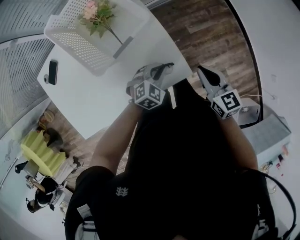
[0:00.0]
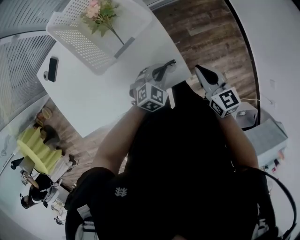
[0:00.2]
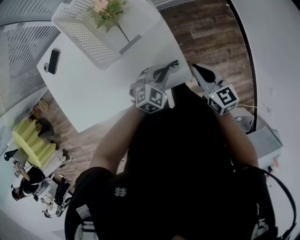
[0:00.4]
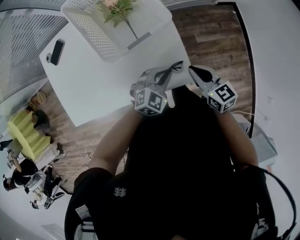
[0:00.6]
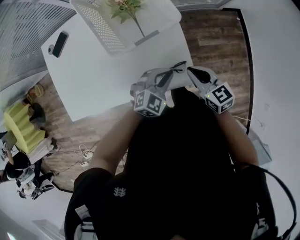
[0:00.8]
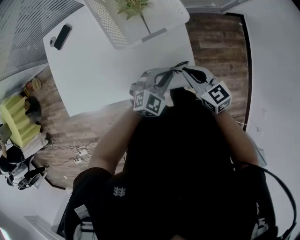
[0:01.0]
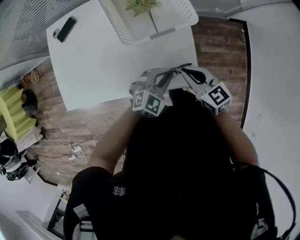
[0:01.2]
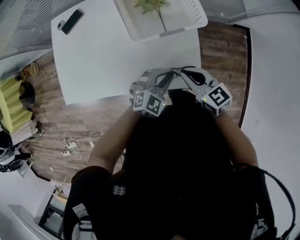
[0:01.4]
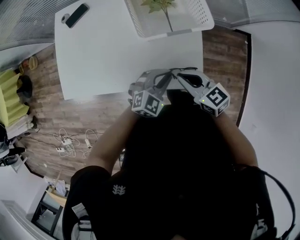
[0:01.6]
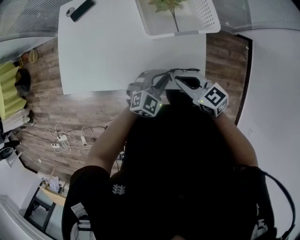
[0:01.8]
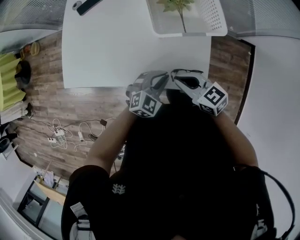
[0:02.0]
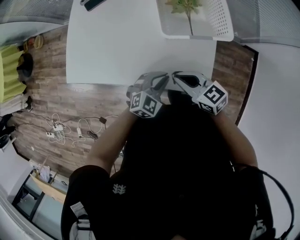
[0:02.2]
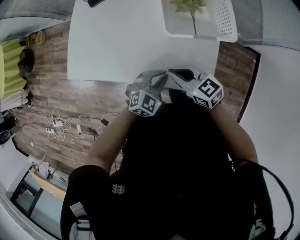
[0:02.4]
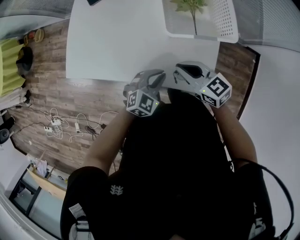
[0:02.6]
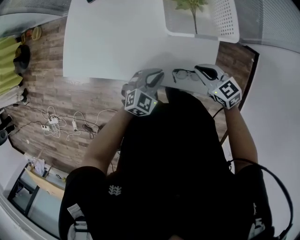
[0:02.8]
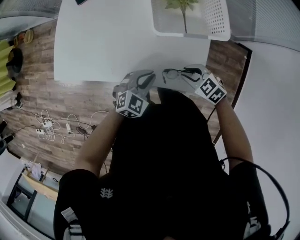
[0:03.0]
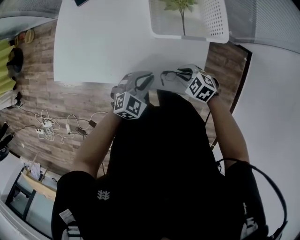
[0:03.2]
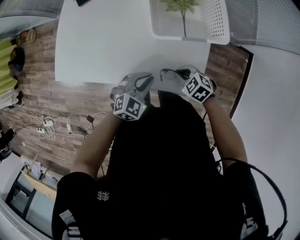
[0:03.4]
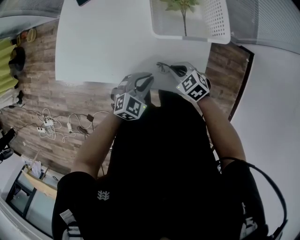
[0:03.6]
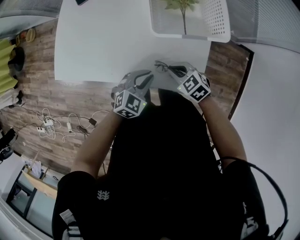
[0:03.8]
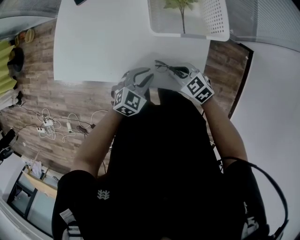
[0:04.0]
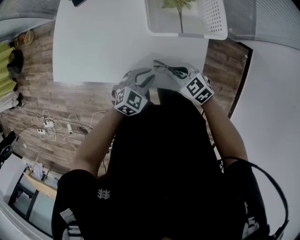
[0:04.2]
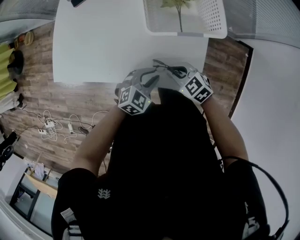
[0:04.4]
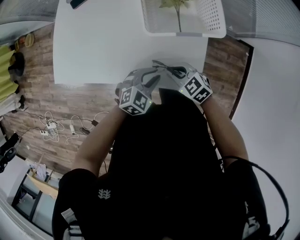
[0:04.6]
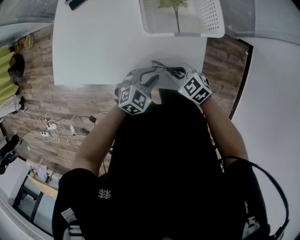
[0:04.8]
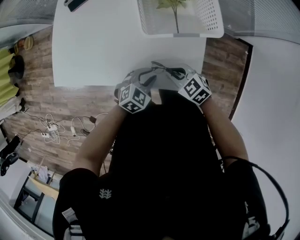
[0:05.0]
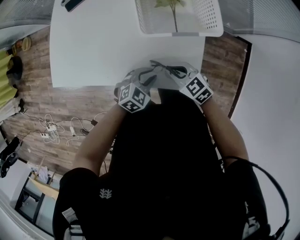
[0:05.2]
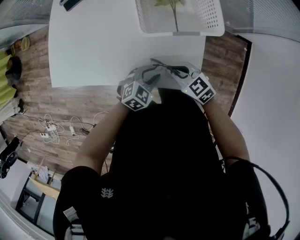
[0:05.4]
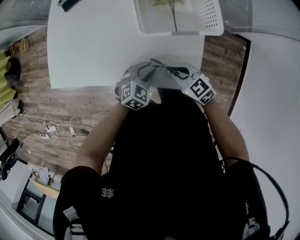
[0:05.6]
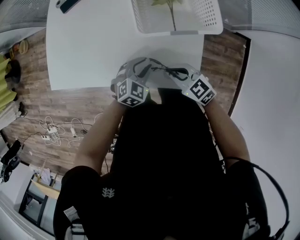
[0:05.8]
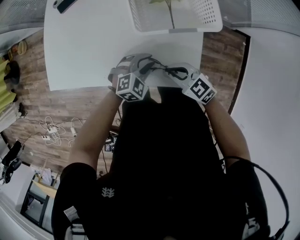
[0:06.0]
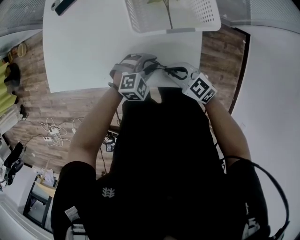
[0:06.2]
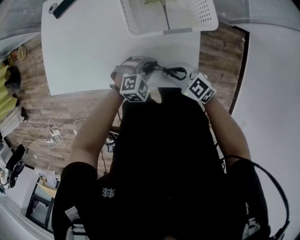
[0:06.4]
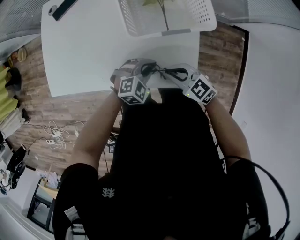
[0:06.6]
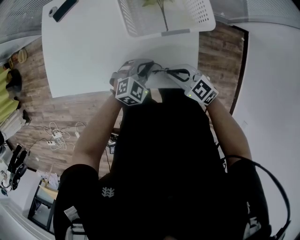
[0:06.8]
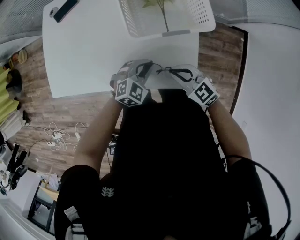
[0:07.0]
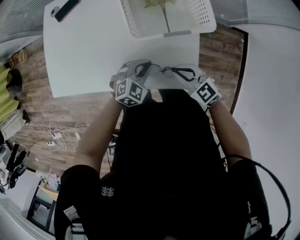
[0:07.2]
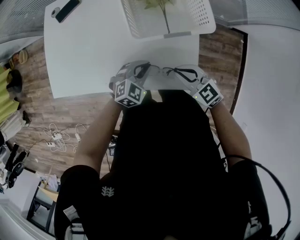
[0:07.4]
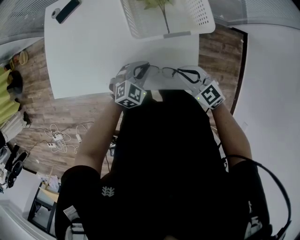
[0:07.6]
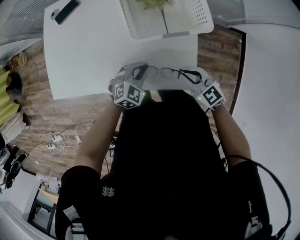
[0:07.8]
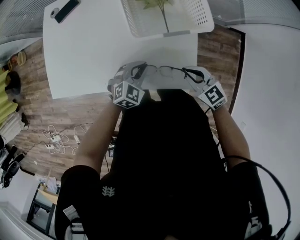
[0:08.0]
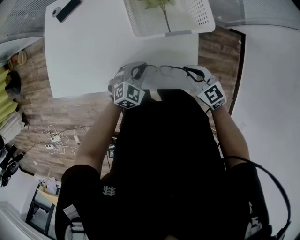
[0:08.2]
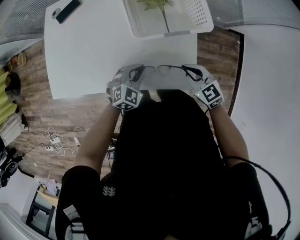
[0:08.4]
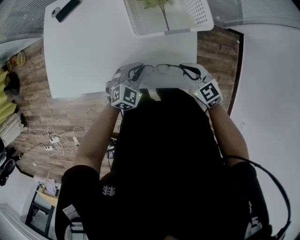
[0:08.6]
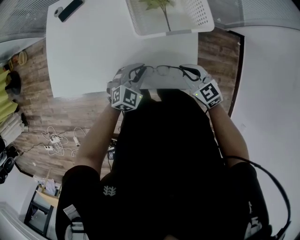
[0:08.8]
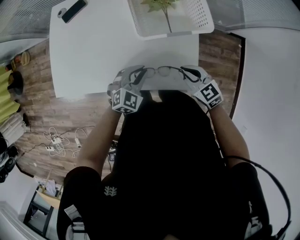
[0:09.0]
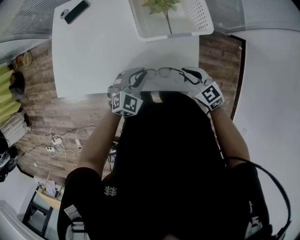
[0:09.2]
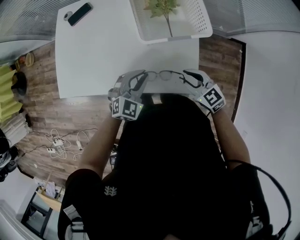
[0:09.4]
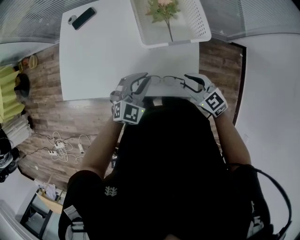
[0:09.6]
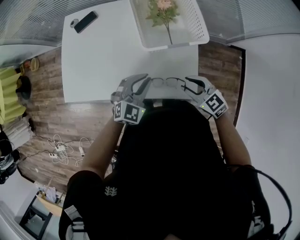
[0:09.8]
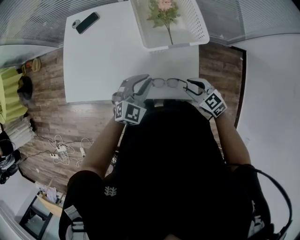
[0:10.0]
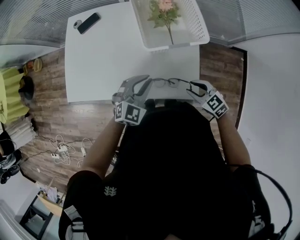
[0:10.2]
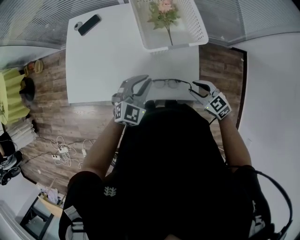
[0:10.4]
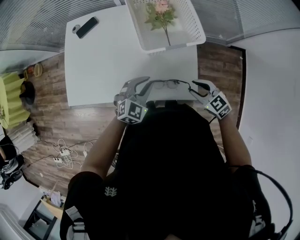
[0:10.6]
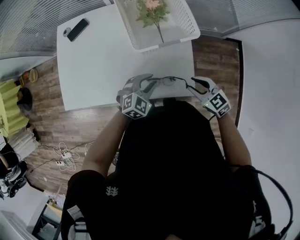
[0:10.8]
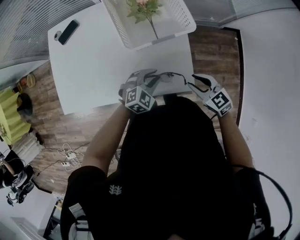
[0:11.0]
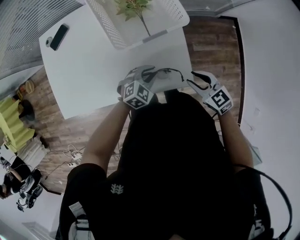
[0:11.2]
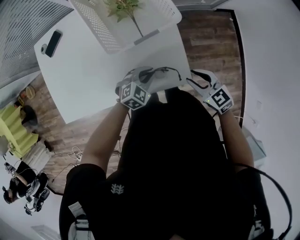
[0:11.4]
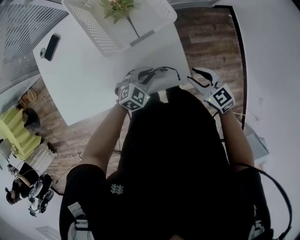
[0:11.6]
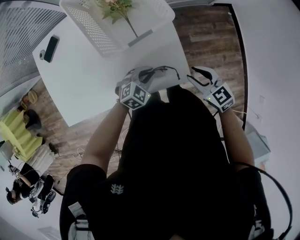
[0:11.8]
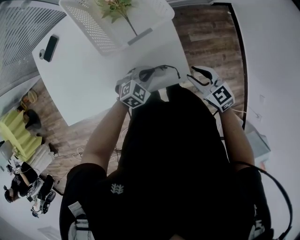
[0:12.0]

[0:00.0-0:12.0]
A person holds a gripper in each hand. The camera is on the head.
0:00.0 to 0:01.6: The right gripper moves some 20 cm, and swivels about 50 degrees. Meanwhile the left gripper shifts by approximately 10 cm, and rotates roughly 30 degrees.
0:01.6 to 0:03.0: The left gripper goes some 10 cm to the left. Meanwhile the right gripper heads downward, covering some 10 cm, goes to the left and returns, roughly 10 cm each way, changes its angle by roughly 40 degrees, and opens up.
0:03.0 to 0:04.4: The grippers move only a little.
0:04.4 to 0:06.0: The left gripper changes place by some 5 cm.
0:06.0 to 0:07.6: The right gripper ends up about 5 cm from where it was. The left gripper closes.
0:07.6 to 0:09.0: There are only small adjustments of the grippers.
0:09.0 to 0:10.4: The left gripper is displaced upward by roughly 10 cm, while the right gripper changes place by some 5 cm, and opens up.
0:10.4 to 0:12.0: The right gripper shifts by roughly 5 cm, and turns by approximately 20 degrees. The left gripper travels downward by approximately 15 cm, and rotates some 40 degrees.

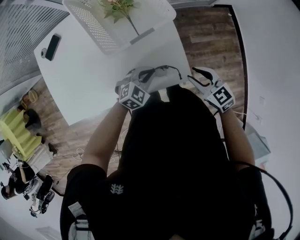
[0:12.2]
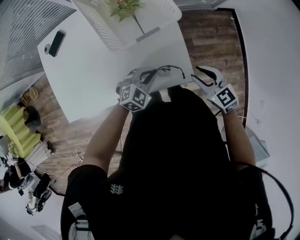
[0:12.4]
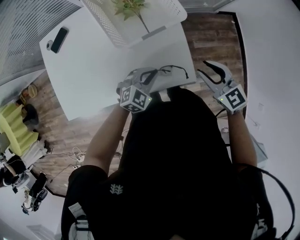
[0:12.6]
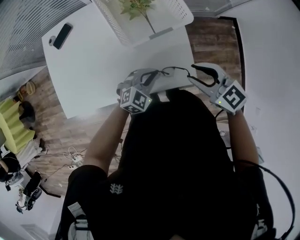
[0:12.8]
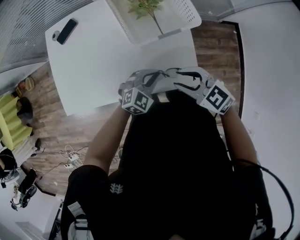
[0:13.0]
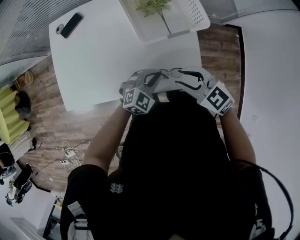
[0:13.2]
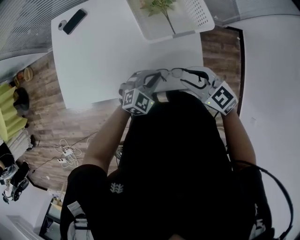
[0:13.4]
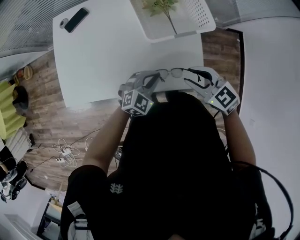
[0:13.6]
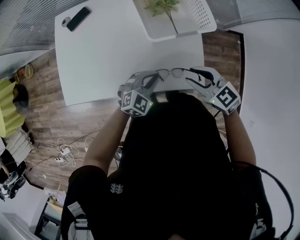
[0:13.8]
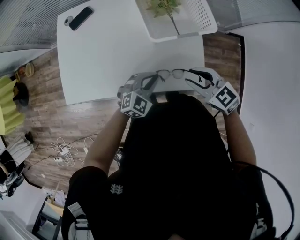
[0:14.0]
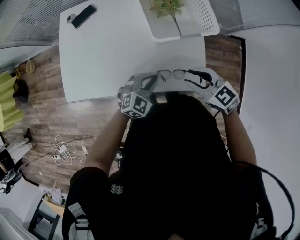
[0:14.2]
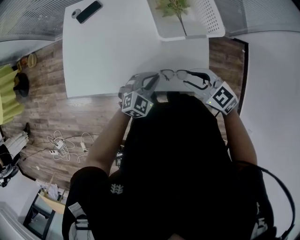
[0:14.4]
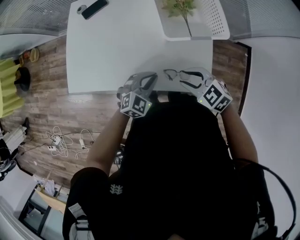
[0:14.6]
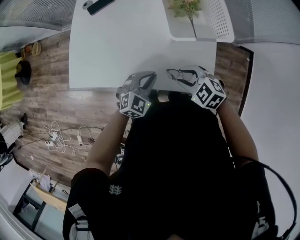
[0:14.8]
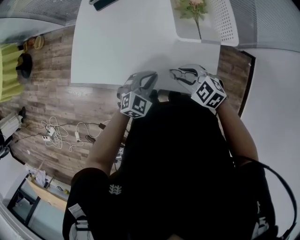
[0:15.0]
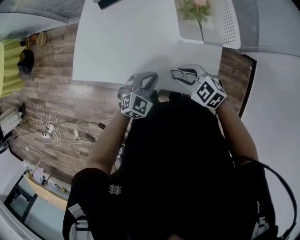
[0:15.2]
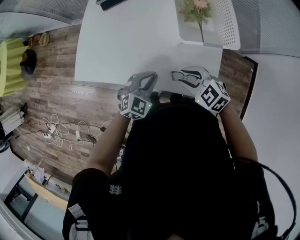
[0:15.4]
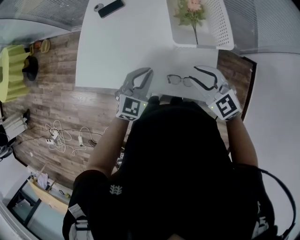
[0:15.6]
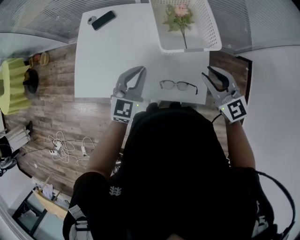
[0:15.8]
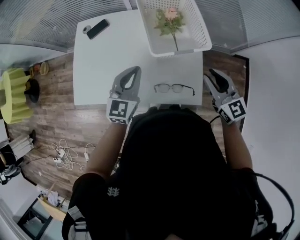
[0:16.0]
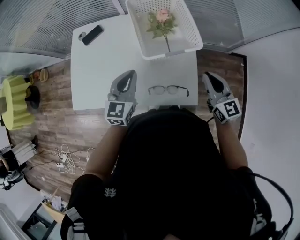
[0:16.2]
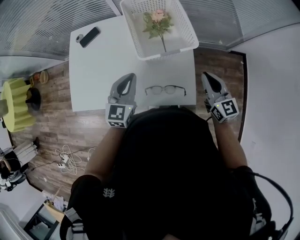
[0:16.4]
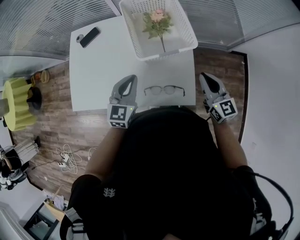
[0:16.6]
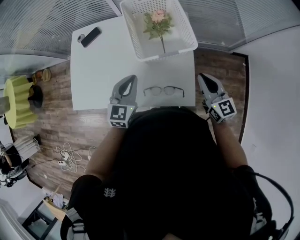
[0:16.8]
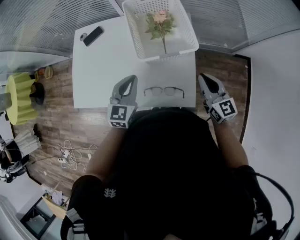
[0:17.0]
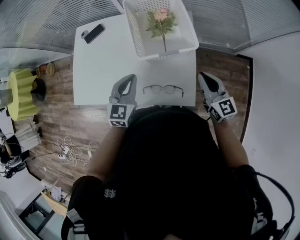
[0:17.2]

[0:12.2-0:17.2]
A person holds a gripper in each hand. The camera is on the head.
0:12.2 to 0:13.8: The grippers both shift to the left and upward by approximately 15 cm.
0:13.8 to 0:15.6: The right gripper heads upward, covering some 5 cm, and swivels roughly 20 degrees; the left gripper is displaced upward and to the left by some 15 cm, and changes its angle by roughly 30 degrees.
0:15.6 to 0:17.2: The right gripper goes about 20 cm to the right, swivels approximately 50 degrees, and closes. The left gripper is displaced to the right by roughly 5 cm.

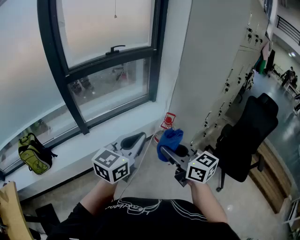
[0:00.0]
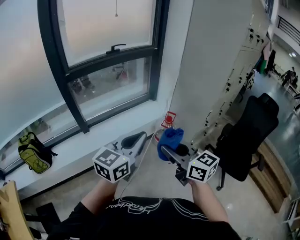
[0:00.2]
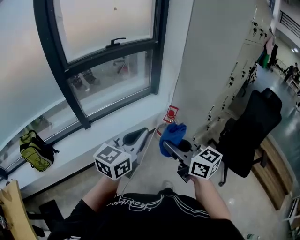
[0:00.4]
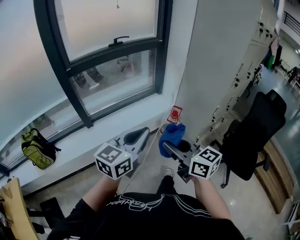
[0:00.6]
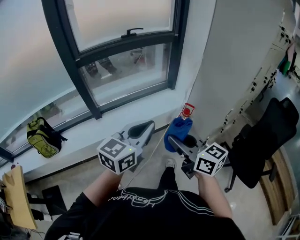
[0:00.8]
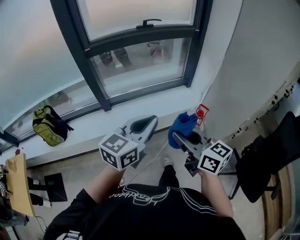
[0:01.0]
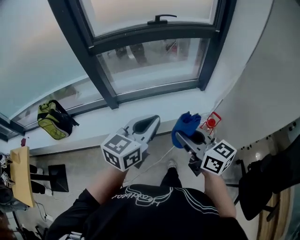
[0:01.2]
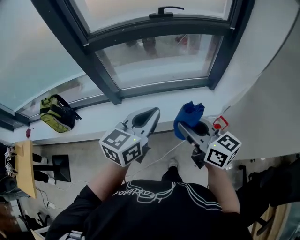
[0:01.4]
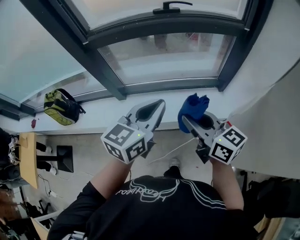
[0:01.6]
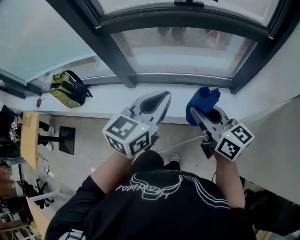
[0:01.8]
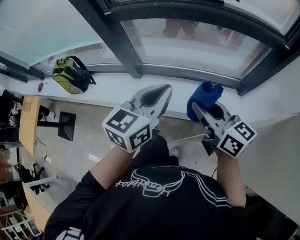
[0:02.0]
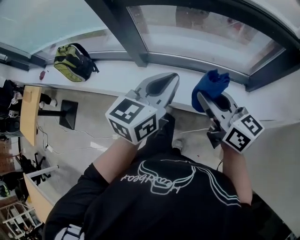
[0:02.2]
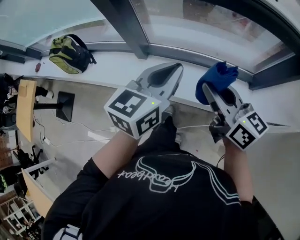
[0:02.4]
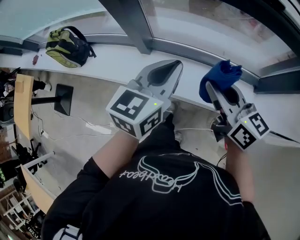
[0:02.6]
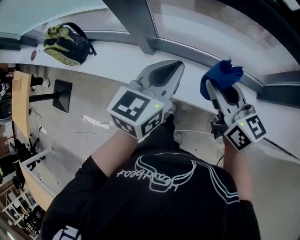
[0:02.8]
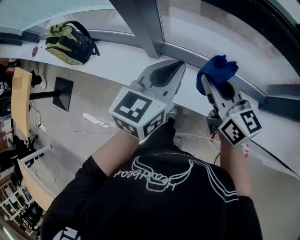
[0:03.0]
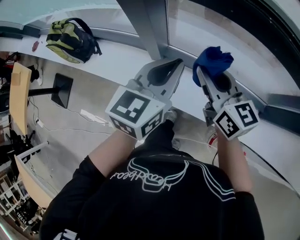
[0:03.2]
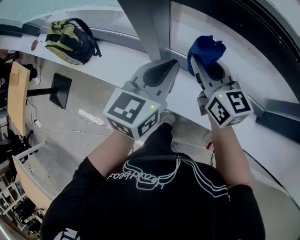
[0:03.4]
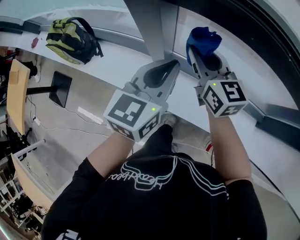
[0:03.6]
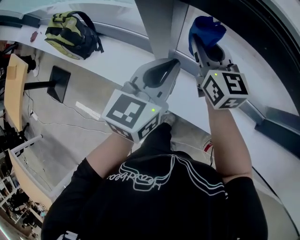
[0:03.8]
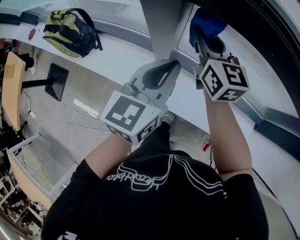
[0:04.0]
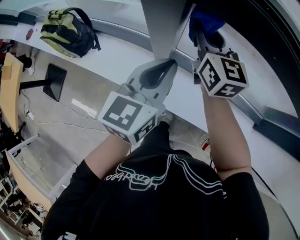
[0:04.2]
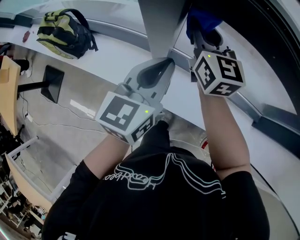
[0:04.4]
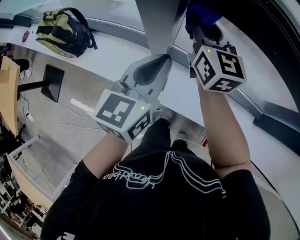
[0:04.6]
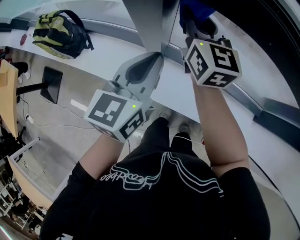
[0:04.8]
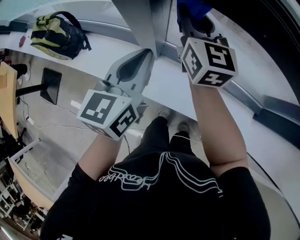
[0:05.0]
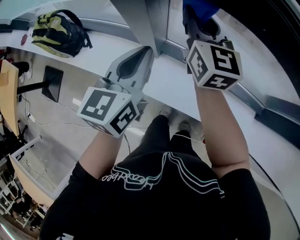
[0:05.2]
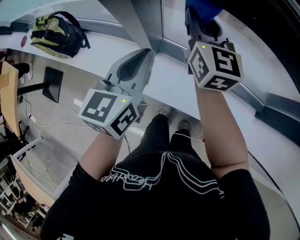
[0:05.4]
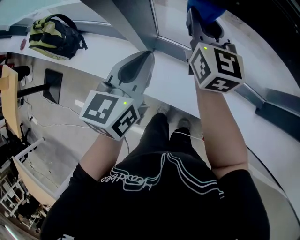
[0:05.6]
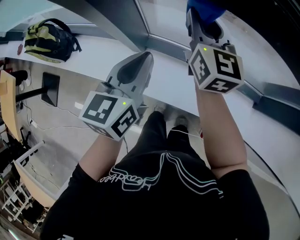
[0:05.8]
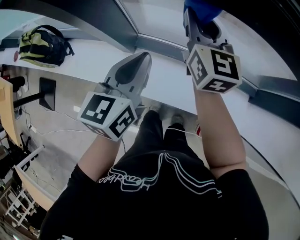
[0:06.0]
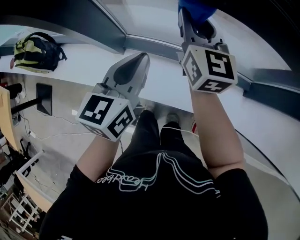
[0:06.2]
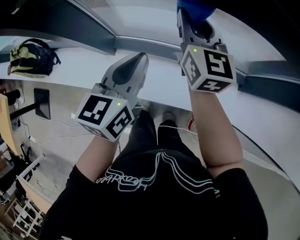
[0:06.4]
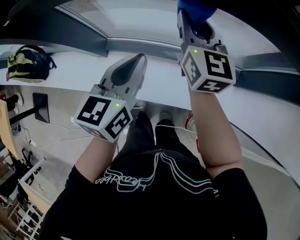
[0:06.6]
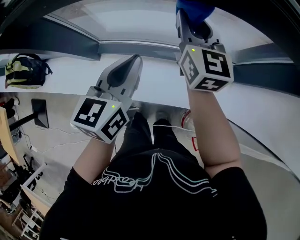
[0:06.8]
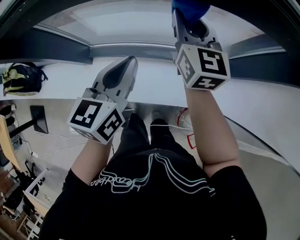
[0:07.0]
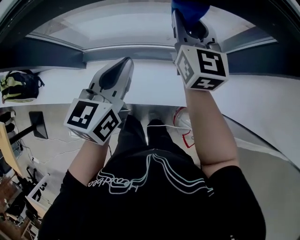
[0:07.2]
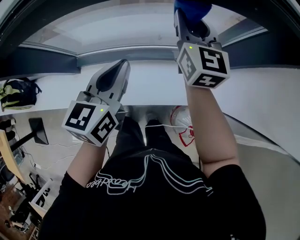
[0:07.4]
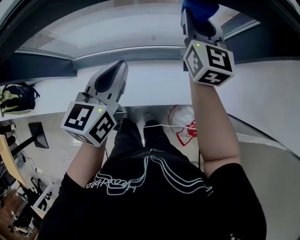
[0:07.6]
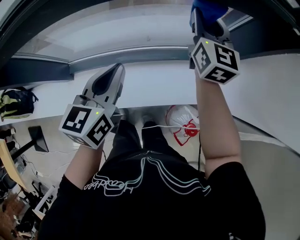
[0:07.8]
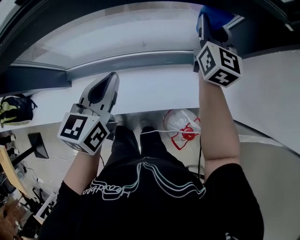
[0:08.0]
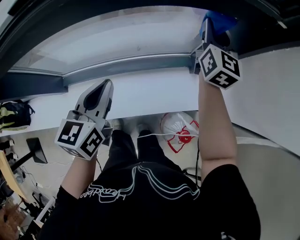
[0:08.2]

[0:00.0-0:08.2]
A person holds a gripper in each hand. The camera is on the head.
0:00.0 to 0:01.6: The pair of grippers is taken approximately 40 cm. The left gripper rotates roughly 30 degrees; the right gripper swivels some 30 degrees.
0:01.6 to 0:03.2: The right gripper moves forward and to the left, about 40 cm; the left gripper is displaced forward, to the left and downward by about 40 cm, and turns by approximately 20 degrees.
0:03.2 to 0:05.0: The right gripper goes about 20 cm forward and to the left, while the left gripper heads to the left and forward, covering some 10 cm.
0:05.0 to 0:06.6: Both grippers move to the right, roughly 30 cm.
0:06.6 to 0:08.2: The right gripper shifts about 40 cm to the right, and rotates roughly 30 degrees. Meanwhile the left gripper is displaced to the right by some 20 cm.
